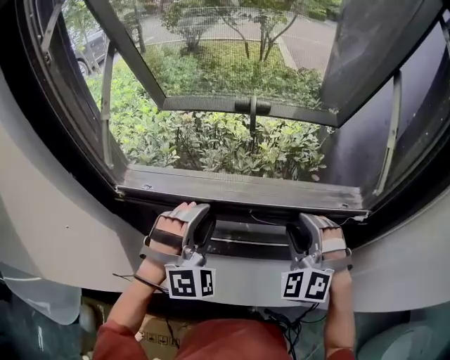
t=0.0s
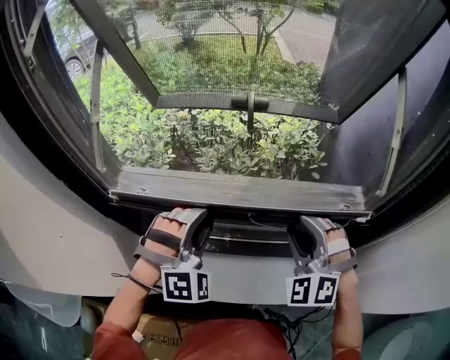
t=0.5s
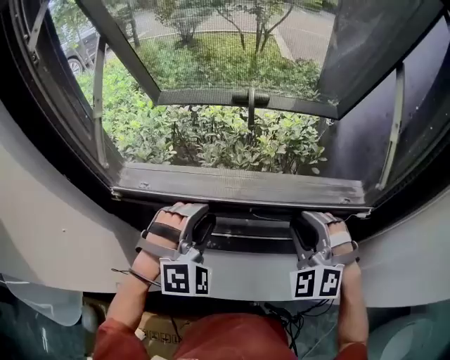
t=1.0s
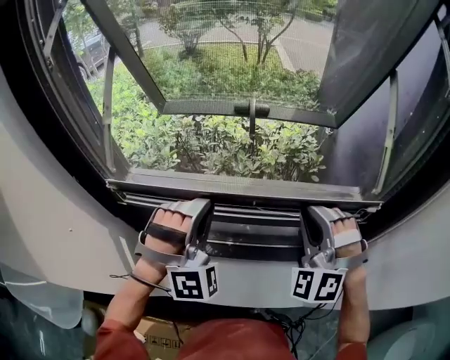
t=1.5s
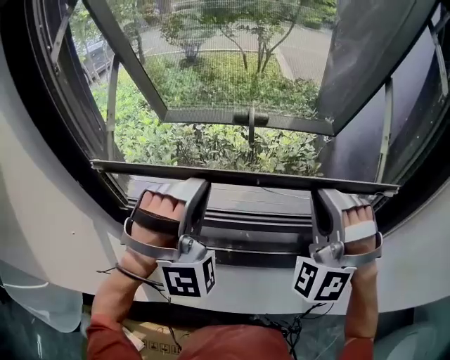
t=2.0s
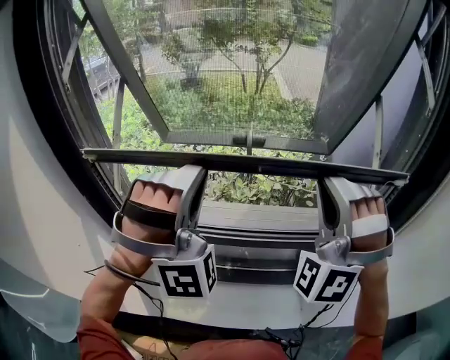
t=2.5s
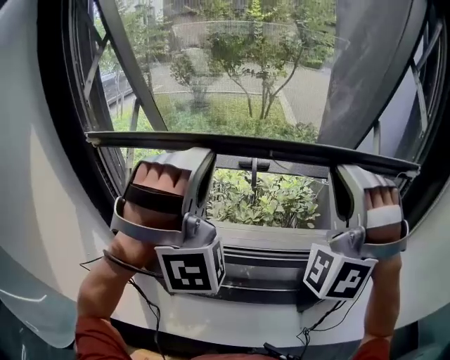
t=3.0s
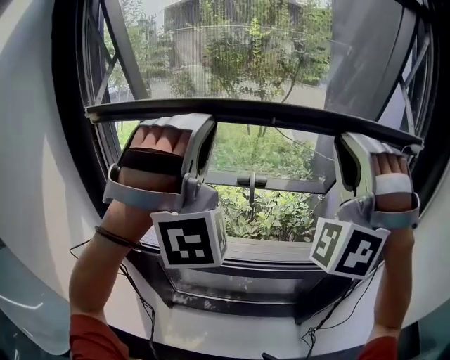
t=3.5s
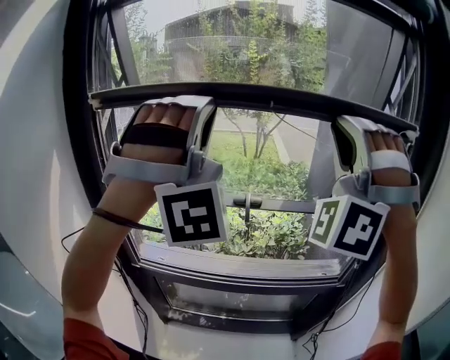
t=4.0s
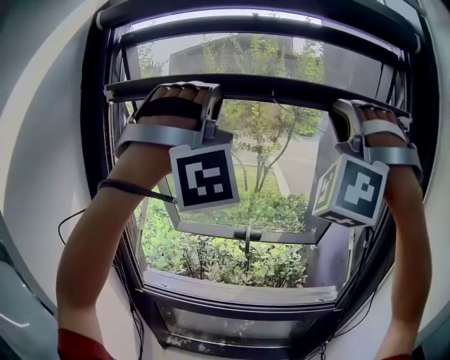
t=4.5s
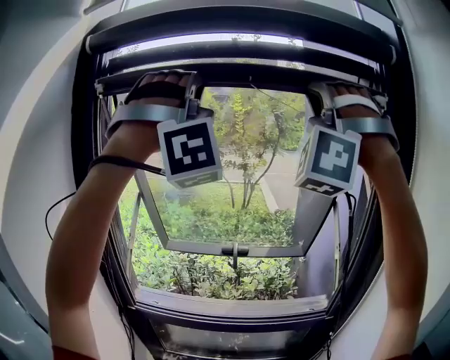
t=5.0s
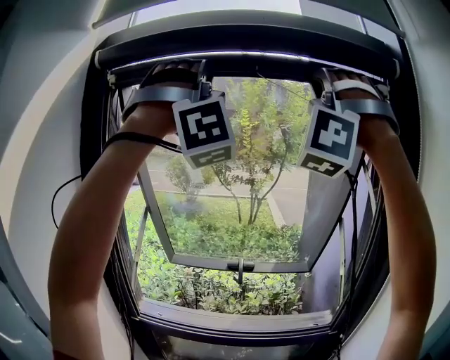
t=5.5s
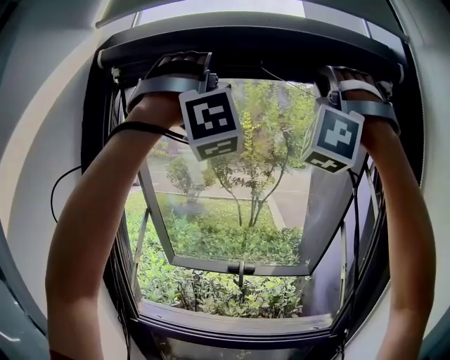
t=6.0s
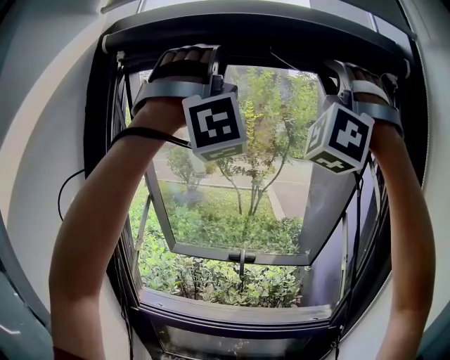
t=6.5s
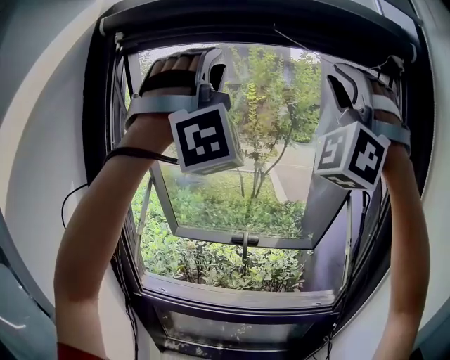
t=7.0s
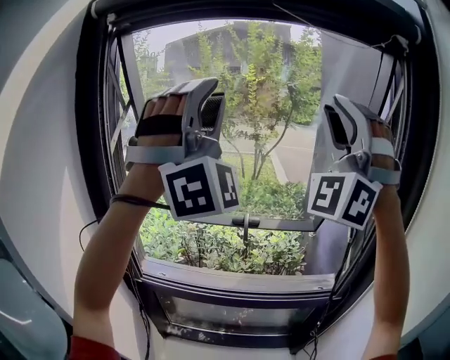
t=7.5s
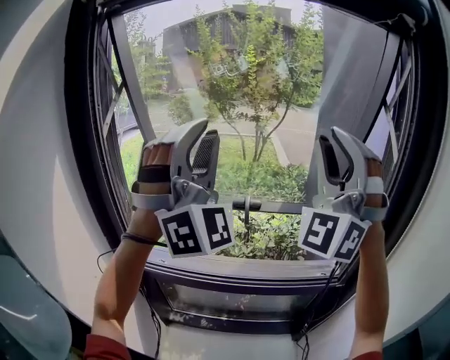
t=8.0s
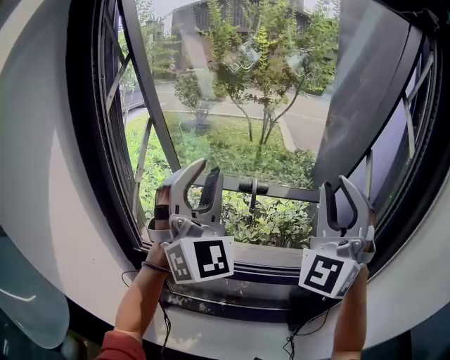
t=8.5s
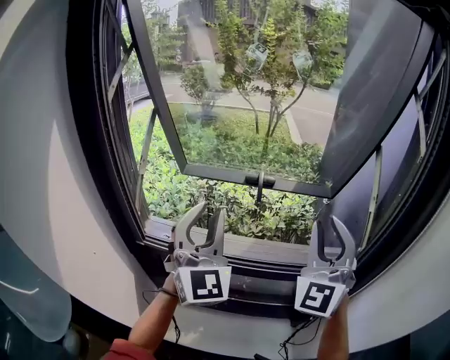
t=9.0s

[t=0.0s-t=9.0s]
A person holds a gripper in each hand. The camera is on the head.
t=0.0s to t=2.0s: The grippers both shift upward by roughly 15 cm. The left gripper changes its angle by approximately 20 degrees, and closes its fingers. The right gripper turns by about 30 degrees, and closes its fingers.
t=2.0s to t=4.5s: The grippers both shift upward by some 40 cm. The right gripper swivels approximately 30 degrees, while the left gripper changes its angle by some 30 degrees.
t=4.5s to t=7.0s: Both grippers move upward, some 10 cm. The right gripper swivels approximately 20 degrees.
t=7.0s to t=9.0s: Both grippers move downward, about 40 cm. The left gripper twists approximately 60 degrees counterclockwise, seen from behind, while the right gripper rolls clockwise, seen from behind, by approximately 50 degrees.

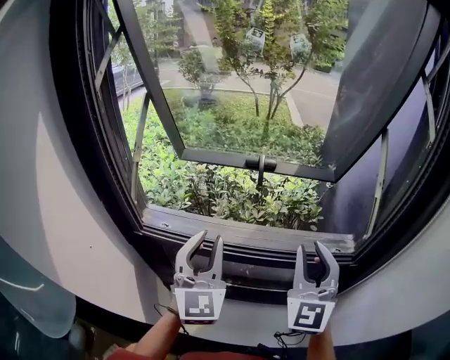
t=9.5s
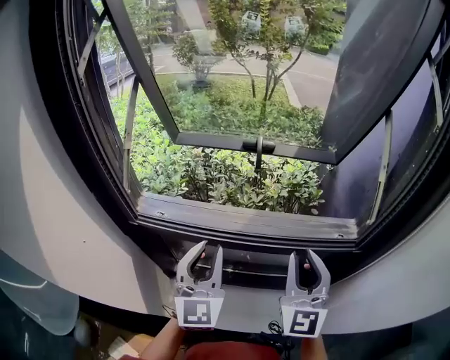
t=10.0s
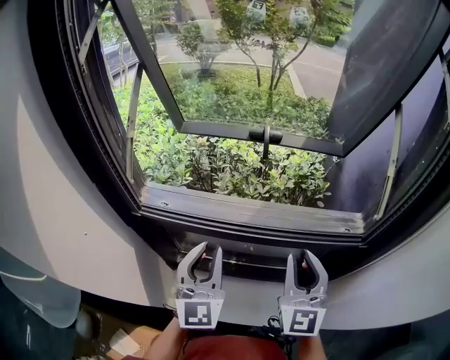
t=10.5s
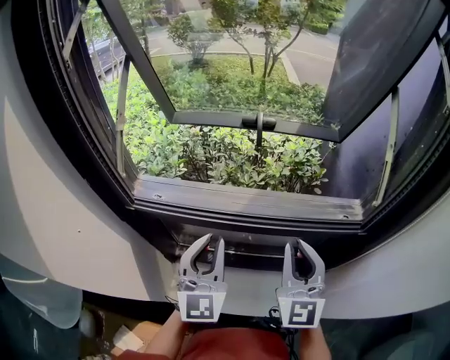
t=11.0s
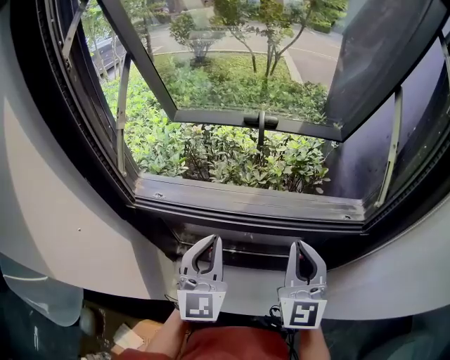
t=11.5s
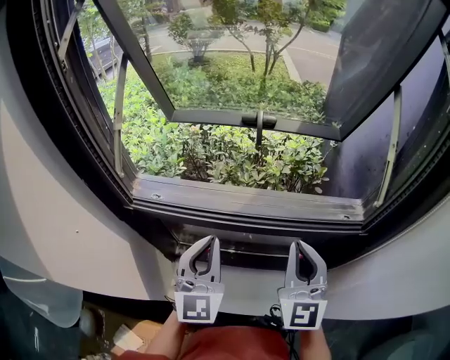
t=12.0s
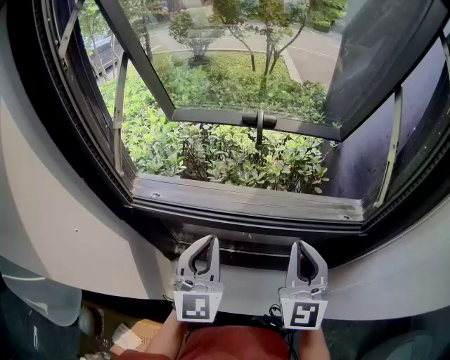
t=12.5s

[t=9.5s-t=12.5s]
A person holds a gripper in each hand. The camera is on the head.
t=9.5s to t=11.0s: Both grippers travel together downward, roughly 10 cm.
t=11.0s to t=12.5s: Both grippers stay put.

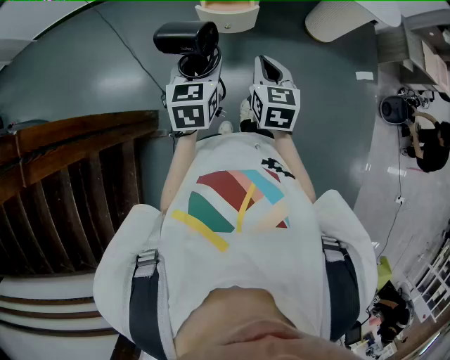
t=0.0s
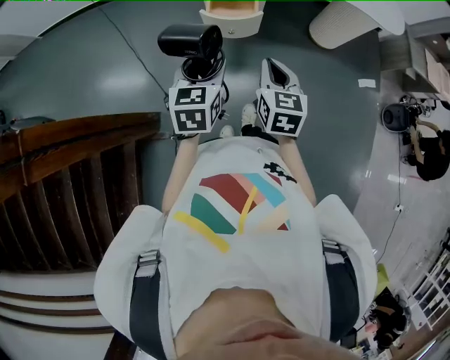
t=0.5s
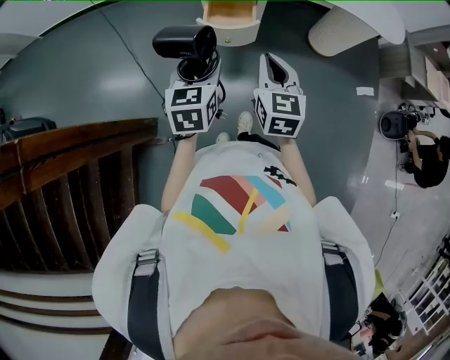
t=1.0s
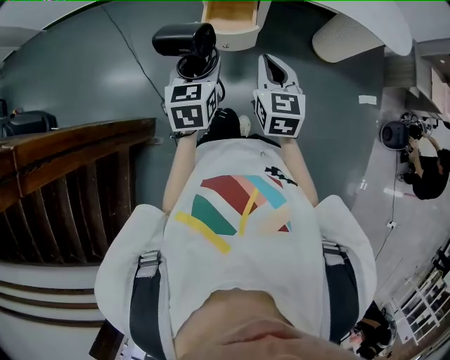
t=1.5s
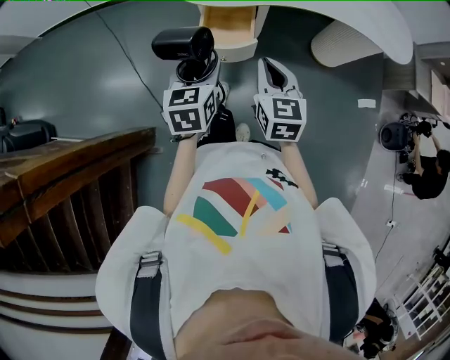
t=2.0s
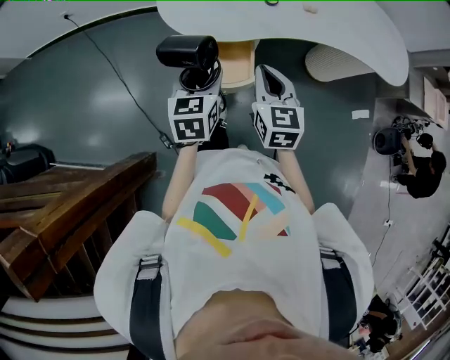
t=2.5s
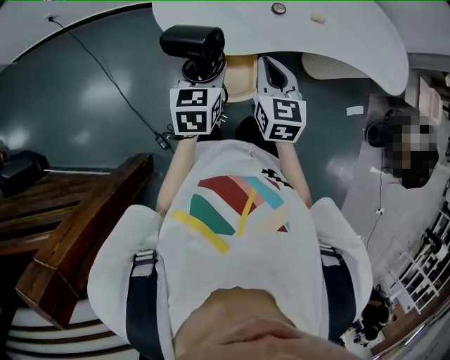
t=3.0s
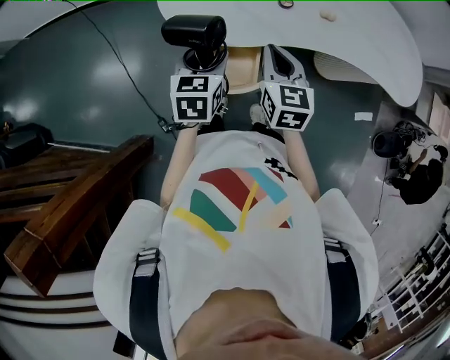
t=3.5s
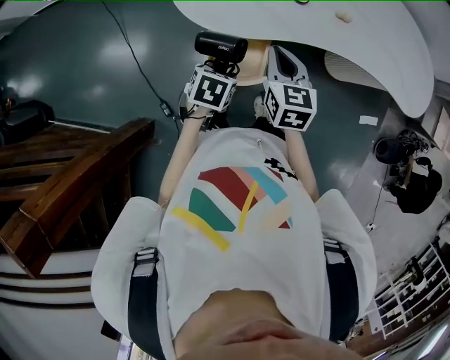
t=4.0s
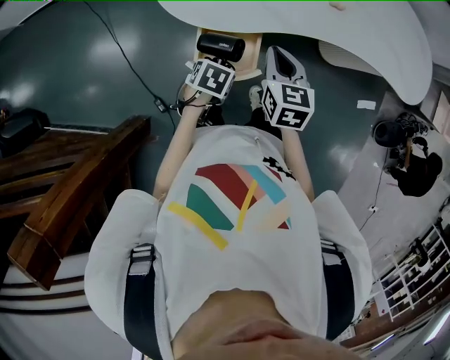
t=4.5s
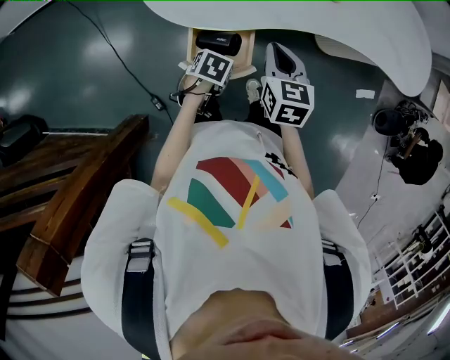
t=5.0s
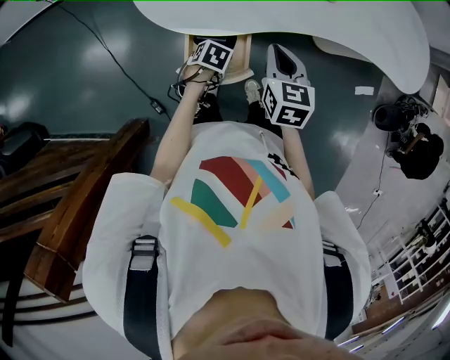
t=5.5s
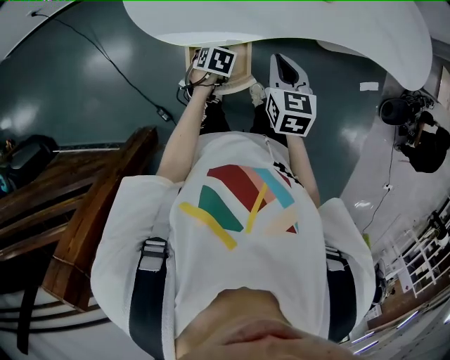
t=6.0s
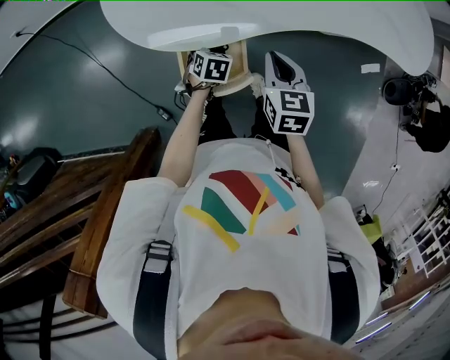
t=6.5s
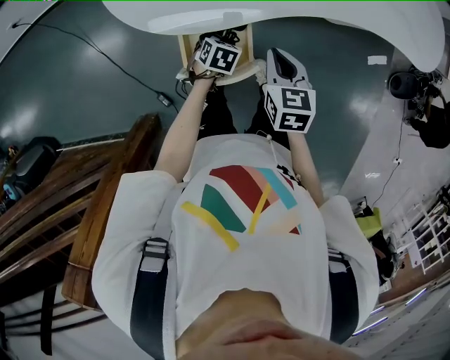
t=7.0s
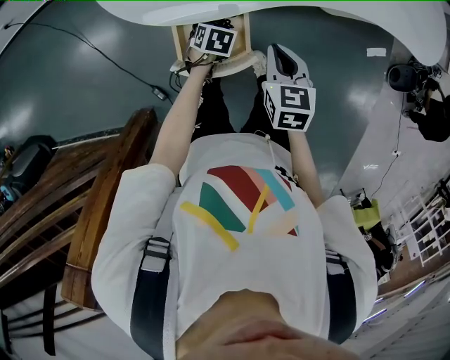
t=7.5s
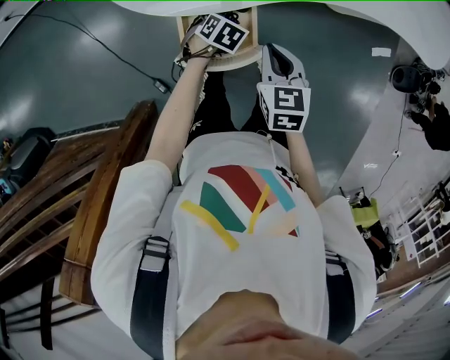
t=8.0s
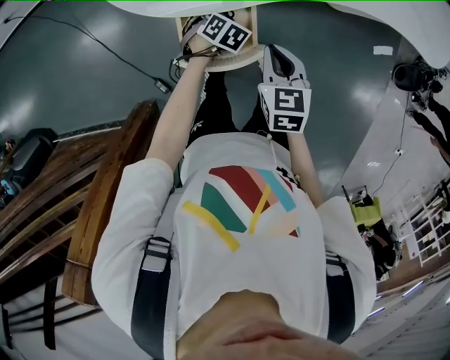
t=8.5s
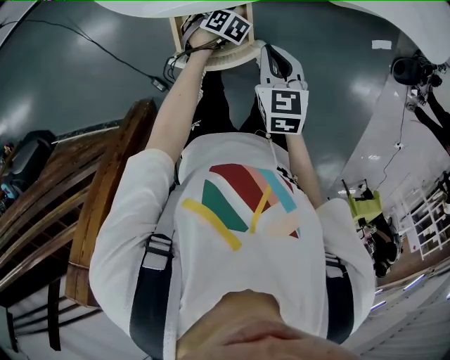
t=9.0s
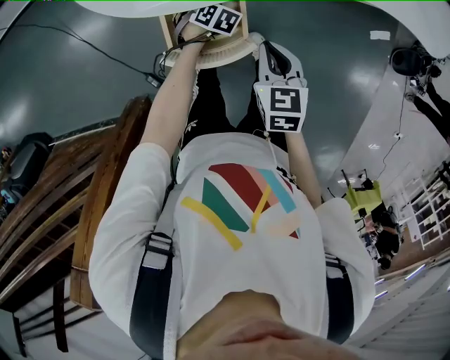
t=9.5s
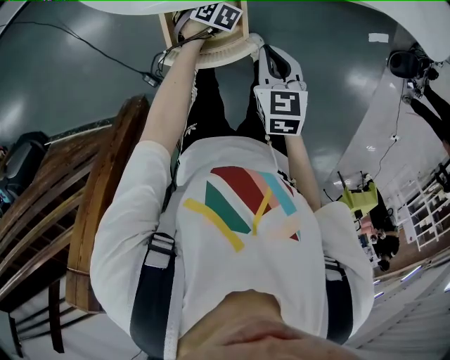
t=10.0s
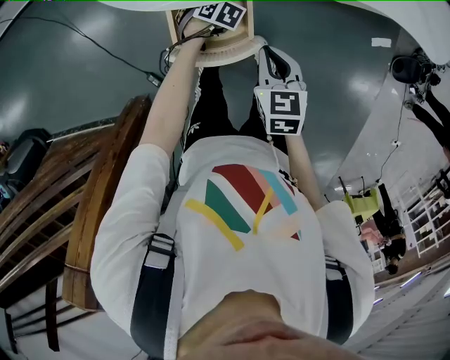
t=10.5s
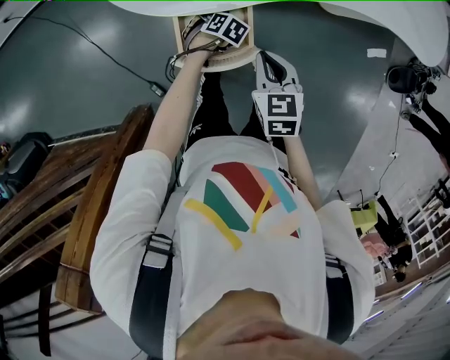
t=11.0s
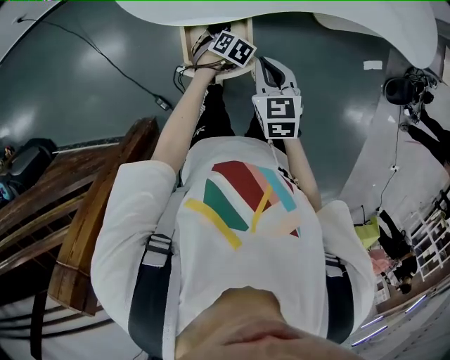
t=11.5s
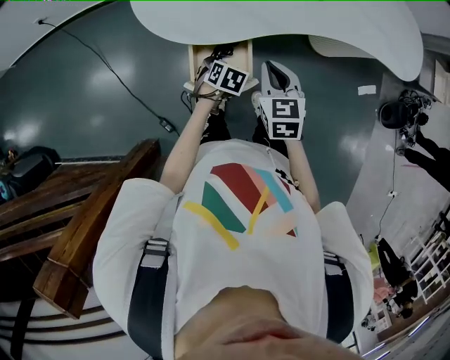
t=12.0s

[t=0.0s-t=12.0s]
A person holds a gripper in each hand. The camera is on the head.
t=0.0s to t=2.0s: The two grippers go some 15 cm forward.
t=2.0s to t=4.0s: The right gripper shifts approximately 20 cm forward; the left gripper heads forward and downward, covering about 20 cm, and points its fingers roughly 30 degrees further downward.
t=4.0s to t=6.0s: The left gripper is displaced downward by roughly 15 cm. Meanwhile the right gripper moves some 5 cm.
t=6.0s to t=8.0s: The right gripper ends up approximately 10 cm from where it was.
t=8.0s to t=10.0s: The left gripper moves downward, approximately 5 cm.
t=10.0s to t=12.0s: The left gripper heads upward, covering roughly 15 cm, and opens. Meanwhile the right gripper shifts about 10 cm upward.

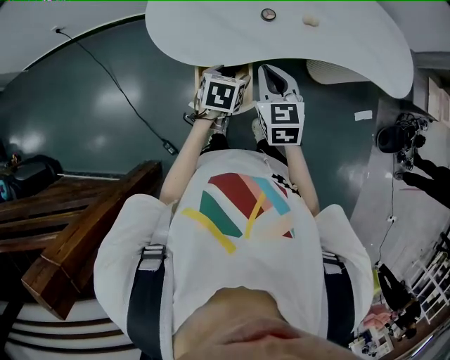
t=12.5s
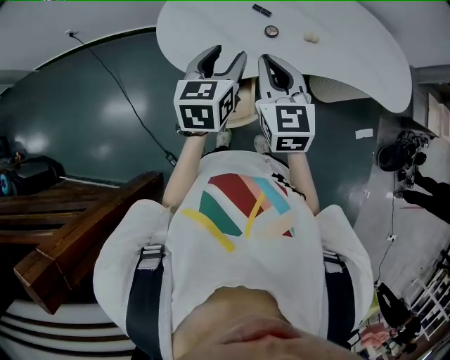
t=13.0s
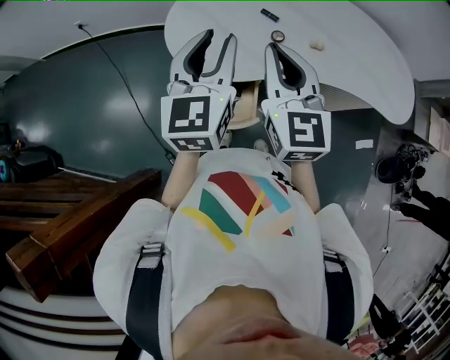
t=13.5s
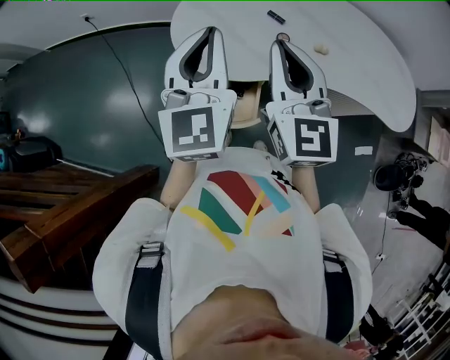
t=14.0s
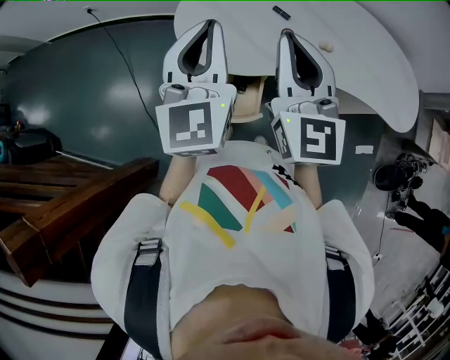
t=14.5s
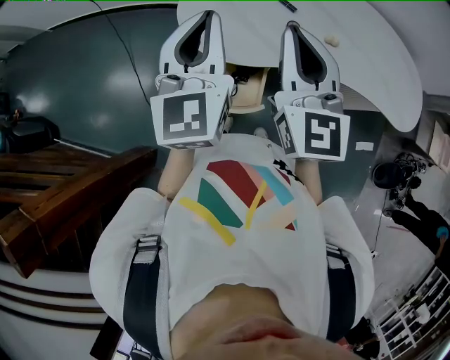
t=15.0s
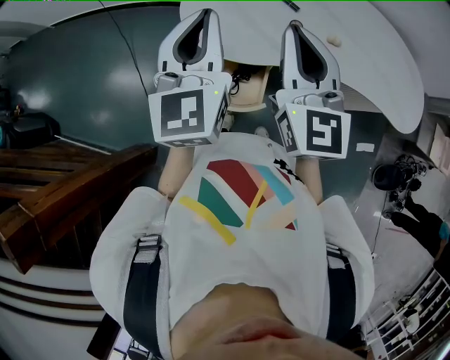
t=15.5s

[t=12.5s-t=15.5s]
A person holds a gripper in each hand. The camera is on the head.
t=12.5s to t=14.0s: The right gripper heads upward, covering about 20 cm, and changes its angle by about 30 degrees, while the left gripper travels upward by approximately 35 cm, tilts its fingers some 50 degrees upward, and closes up.
t=14.0s to t=15.5s: The grippers stay close to where they were, moving slightly.
